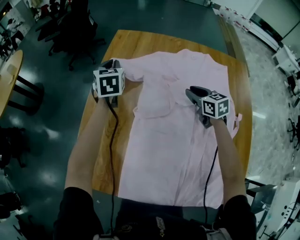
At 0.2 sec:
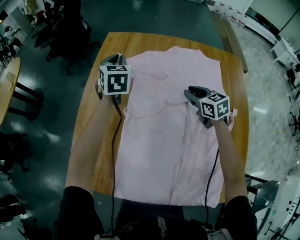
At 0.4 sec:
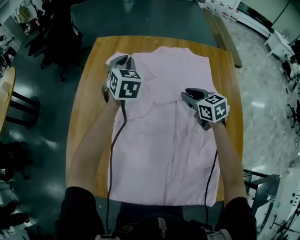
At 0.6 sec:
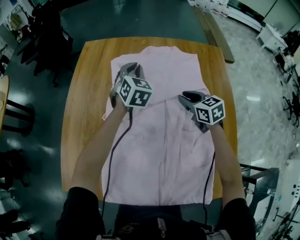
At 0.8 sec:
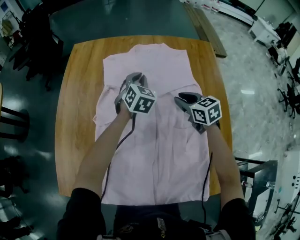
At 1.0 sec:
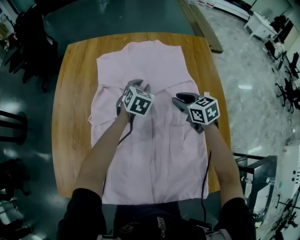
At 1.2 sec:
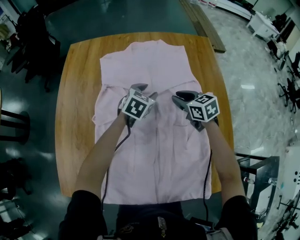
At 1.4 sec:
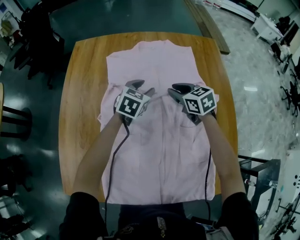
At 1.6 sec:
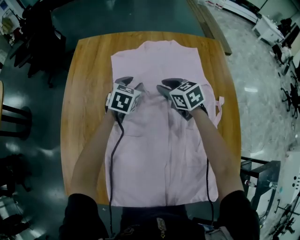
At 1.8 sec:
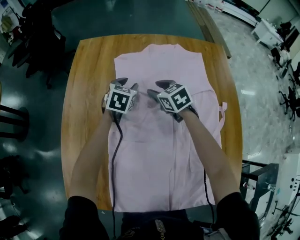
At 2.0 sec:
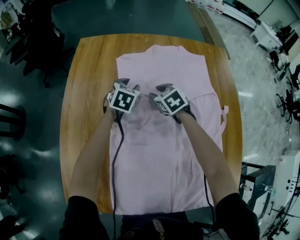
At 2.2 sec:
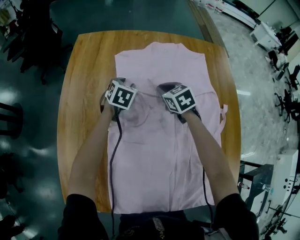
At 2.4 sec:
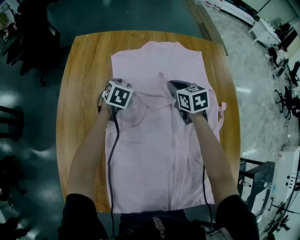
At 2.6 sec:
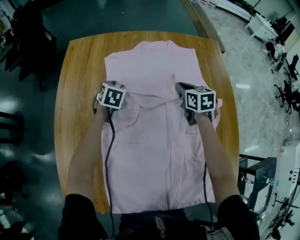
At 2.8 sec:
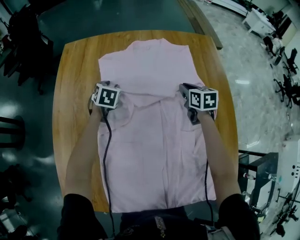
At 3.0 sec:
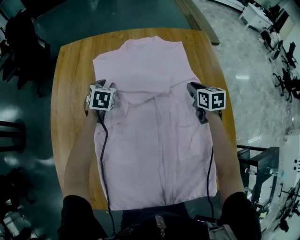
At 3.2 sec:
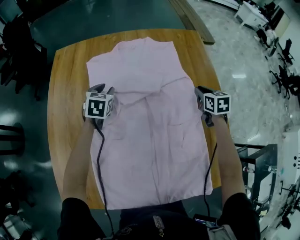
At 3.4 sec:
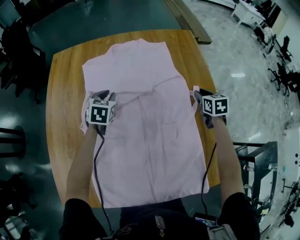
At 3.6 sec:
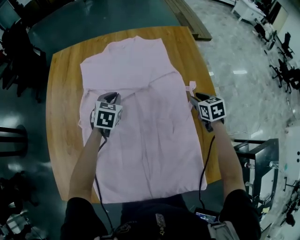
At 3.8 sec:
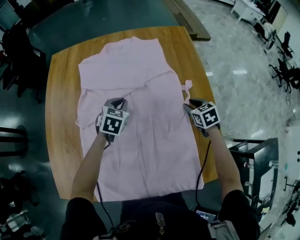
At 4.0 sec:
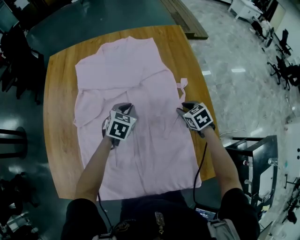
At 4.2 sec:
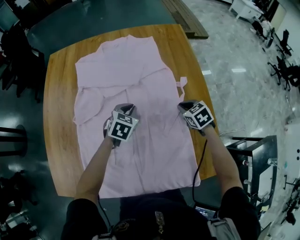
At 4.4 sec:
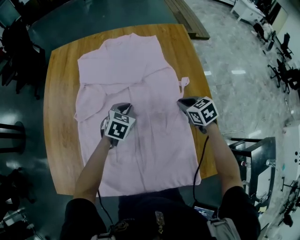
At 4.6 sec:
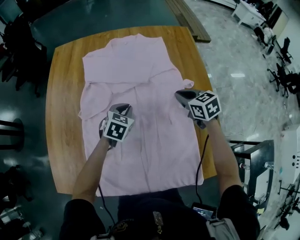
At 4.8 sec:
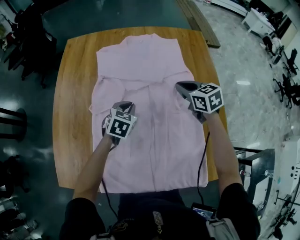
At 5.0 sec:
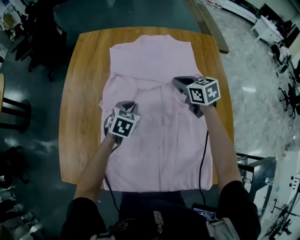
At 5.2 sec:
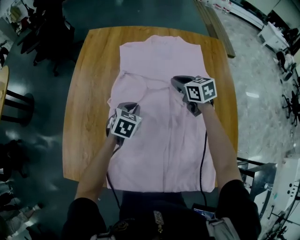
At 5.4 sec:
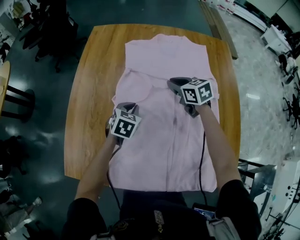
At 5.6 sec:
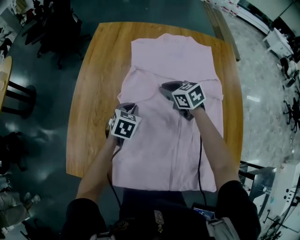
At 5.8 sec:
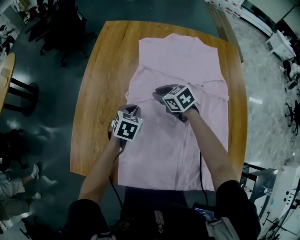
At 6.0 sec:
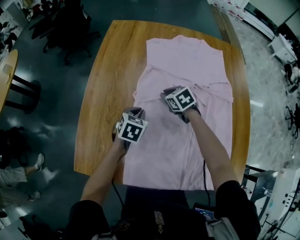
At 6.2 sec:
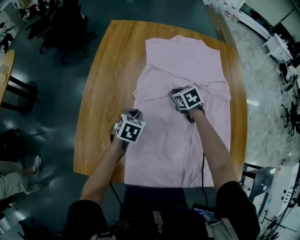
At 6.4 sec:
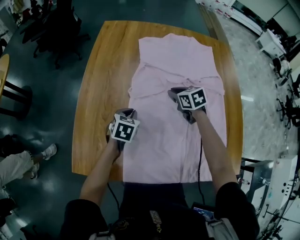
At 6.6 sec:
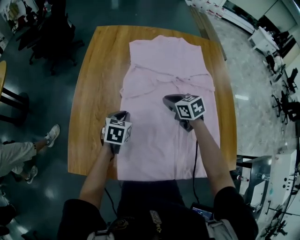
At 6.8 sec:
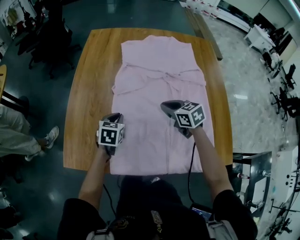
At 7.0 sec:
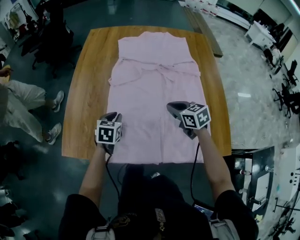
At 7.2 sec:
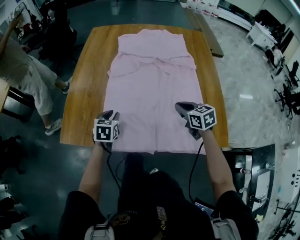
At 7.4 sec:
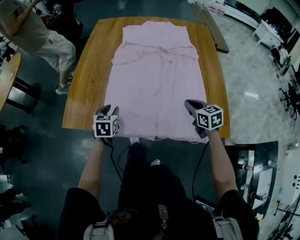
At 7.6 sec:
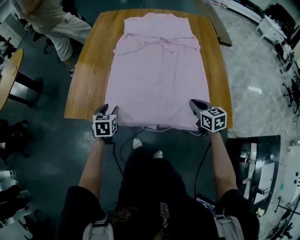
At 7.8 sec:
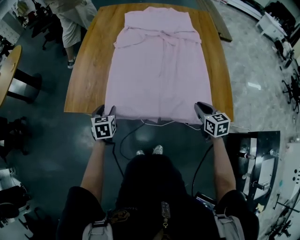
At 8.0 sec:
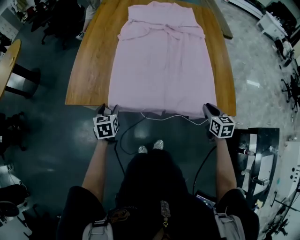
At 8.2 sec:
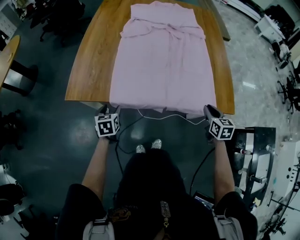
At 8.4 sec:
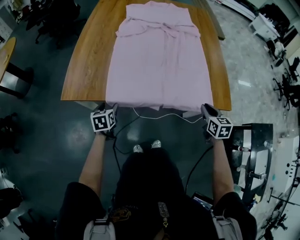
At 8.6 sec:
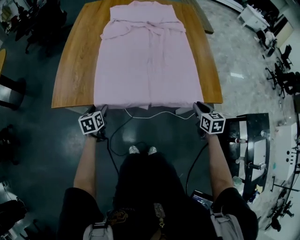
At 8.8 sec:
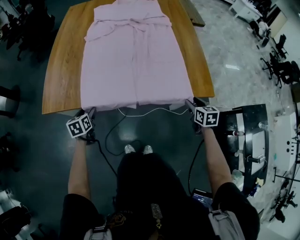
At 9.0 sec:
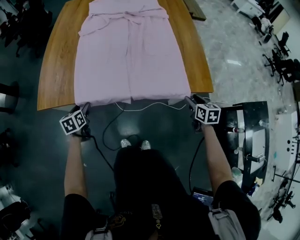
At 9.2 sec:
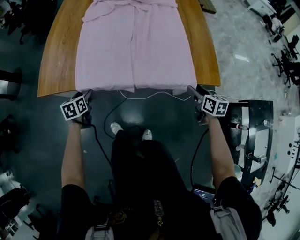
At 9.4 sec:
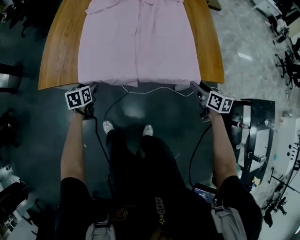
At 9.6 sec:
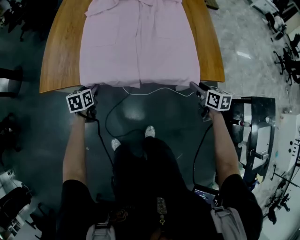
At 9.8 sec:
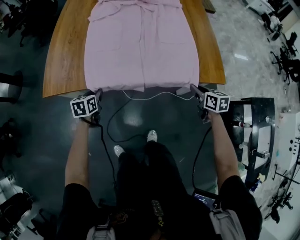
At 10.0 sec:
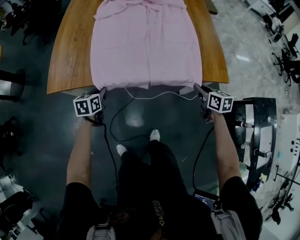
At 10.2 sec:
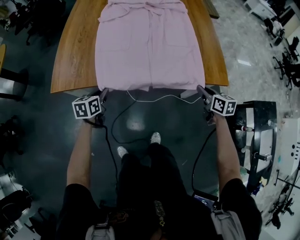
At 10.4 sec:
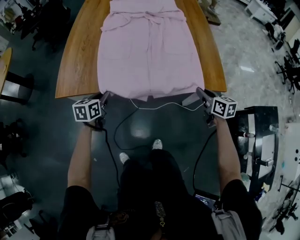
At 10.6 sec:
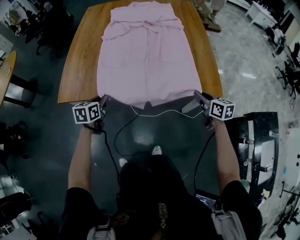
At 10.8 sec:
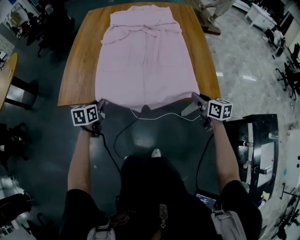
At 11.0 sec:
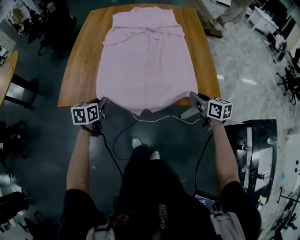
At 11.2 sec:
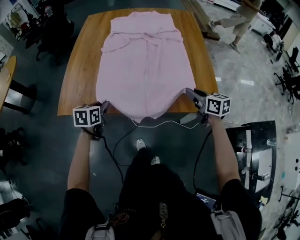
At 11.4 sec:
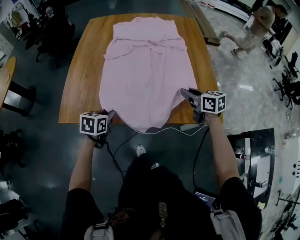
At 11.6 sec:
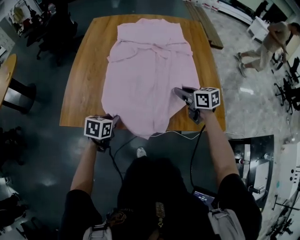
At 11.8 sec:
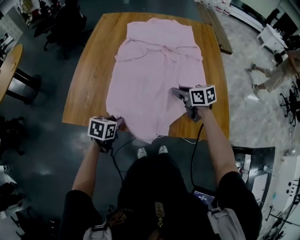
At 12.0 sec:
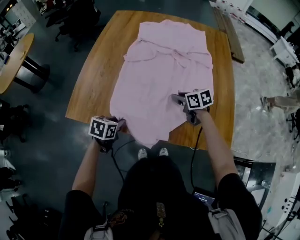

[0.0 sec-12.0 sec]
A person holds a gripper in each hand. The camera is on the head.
0.0 sec to 1.6 sec: The left gripper moves approximately 30 cm, turns by approximately 40 degrees, and opens.
1.6 sec to 3.0 sec: The left gripper shifts by approximately 5 cm, while the right gripper moves to the right, about 20 cm, and rotates about 30 degrees.
3.0 sec to 4.4 sec: The left gripper goes approximately 25 cm to the right and backward, and closes its fingers; the right gripper is displaced backward by some 15 cm, and changes its angle by approximately 20 degrees.
4.4 sec to 6.0 sec: Both grippers travel together to the left, roughly 30 cm.
6.0 sec to 7.6 sec: The right gripper heads backward and to the right, covering about 50 cm, and changes its angle by some 30 degrees, while the left gripper moves backward, about 30 cm, and opens up.
7.6 sec to 9.0 sec: The left gripper moves downward and backward, about 10 cm, while the right gripper moves backward, to the right and downward, roughly 20 cm, swivels approximately 20 degrees, and opens up.
9.0 sec to 10.4 sec: The left gripper is displaced upward and to the right by some 10 cm, and closes. Meanwhile the right gripper heads upward and to the left, covering about 10 cm, and closes its fingers.
10.4 sec to 12.0 sec: The left gripper is displaced forward by roughly 5 cm. Meanwhile the right gripper is displaced forward and to the left by some 30 cm, and swivels approximately 30 degrees.

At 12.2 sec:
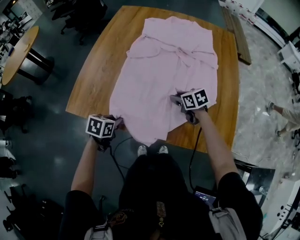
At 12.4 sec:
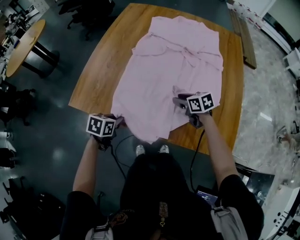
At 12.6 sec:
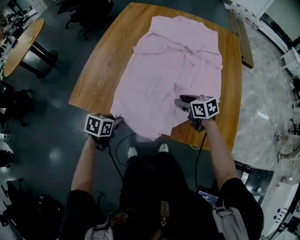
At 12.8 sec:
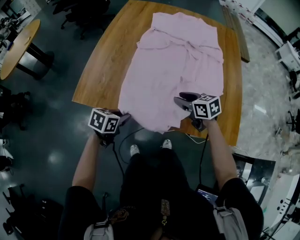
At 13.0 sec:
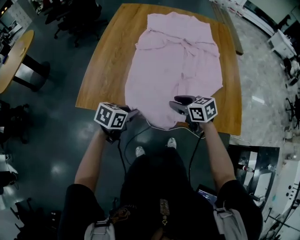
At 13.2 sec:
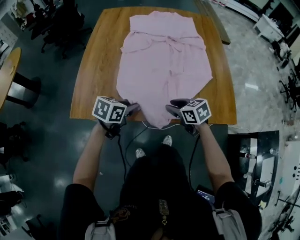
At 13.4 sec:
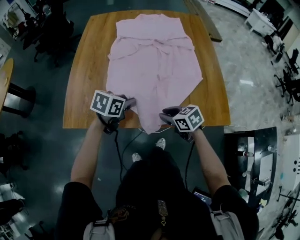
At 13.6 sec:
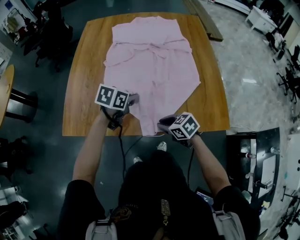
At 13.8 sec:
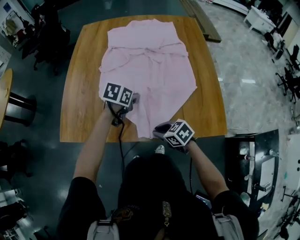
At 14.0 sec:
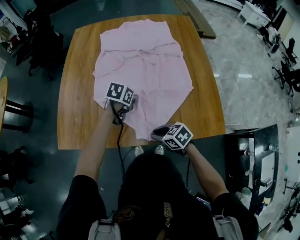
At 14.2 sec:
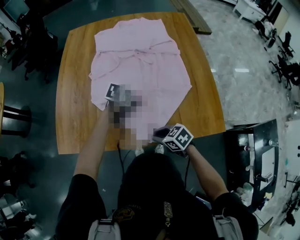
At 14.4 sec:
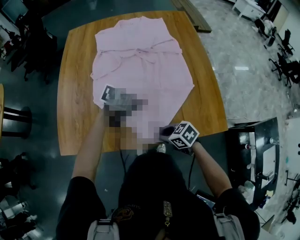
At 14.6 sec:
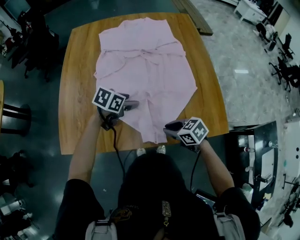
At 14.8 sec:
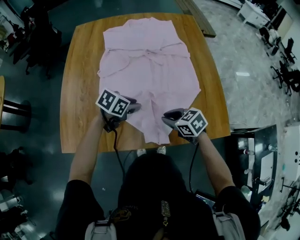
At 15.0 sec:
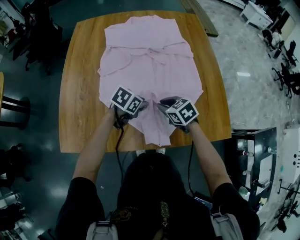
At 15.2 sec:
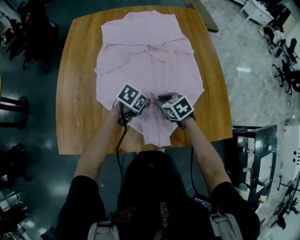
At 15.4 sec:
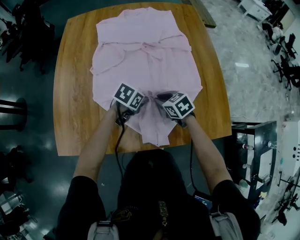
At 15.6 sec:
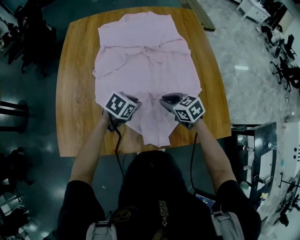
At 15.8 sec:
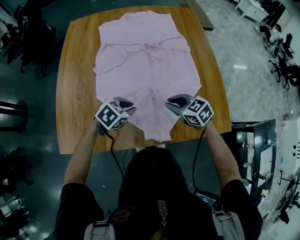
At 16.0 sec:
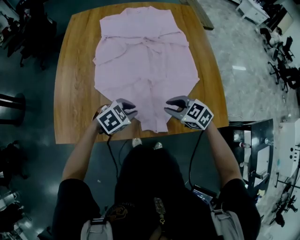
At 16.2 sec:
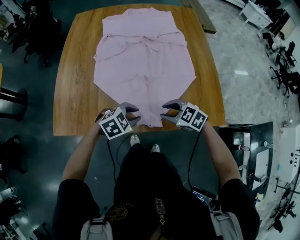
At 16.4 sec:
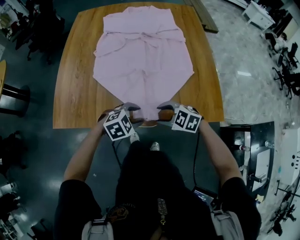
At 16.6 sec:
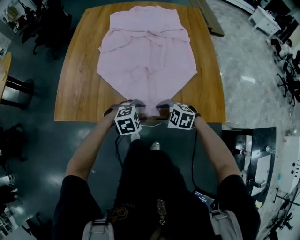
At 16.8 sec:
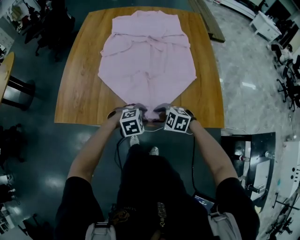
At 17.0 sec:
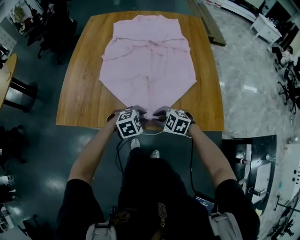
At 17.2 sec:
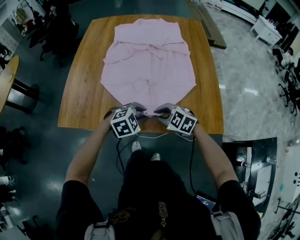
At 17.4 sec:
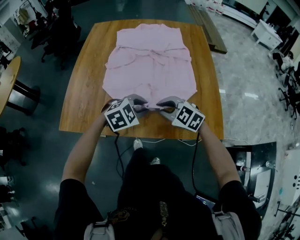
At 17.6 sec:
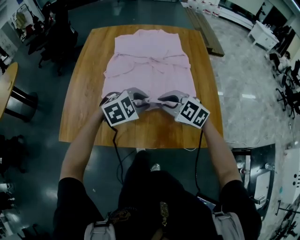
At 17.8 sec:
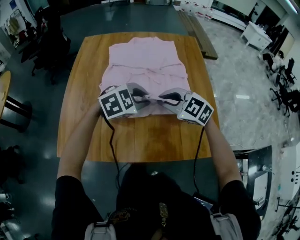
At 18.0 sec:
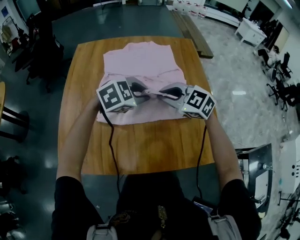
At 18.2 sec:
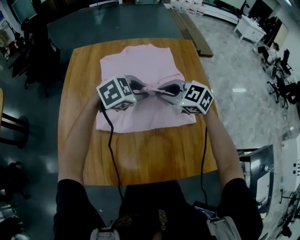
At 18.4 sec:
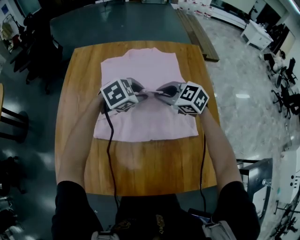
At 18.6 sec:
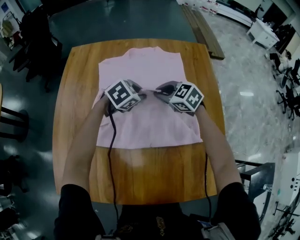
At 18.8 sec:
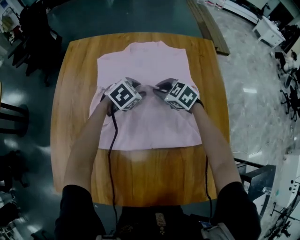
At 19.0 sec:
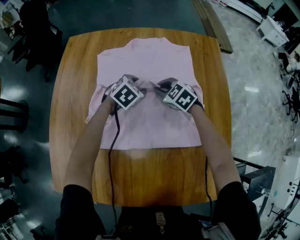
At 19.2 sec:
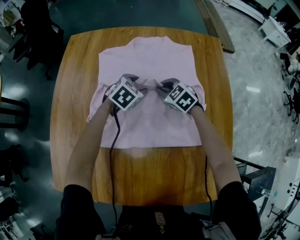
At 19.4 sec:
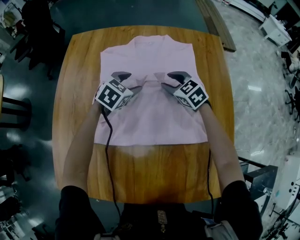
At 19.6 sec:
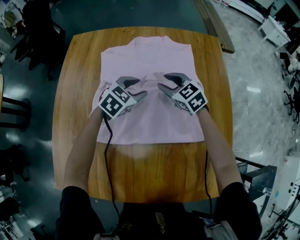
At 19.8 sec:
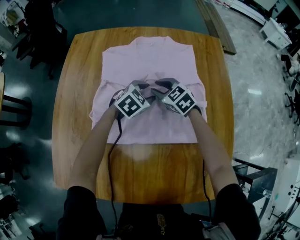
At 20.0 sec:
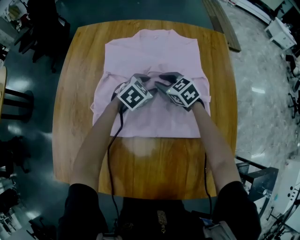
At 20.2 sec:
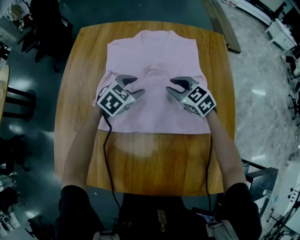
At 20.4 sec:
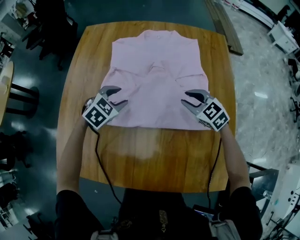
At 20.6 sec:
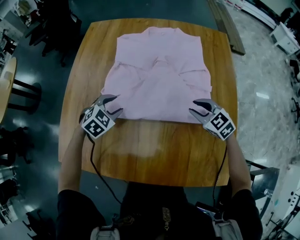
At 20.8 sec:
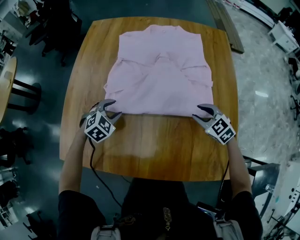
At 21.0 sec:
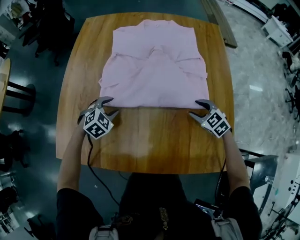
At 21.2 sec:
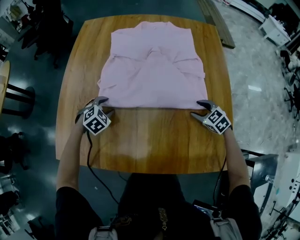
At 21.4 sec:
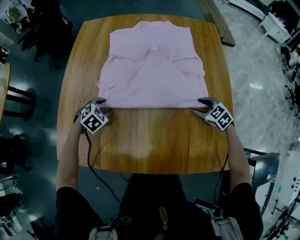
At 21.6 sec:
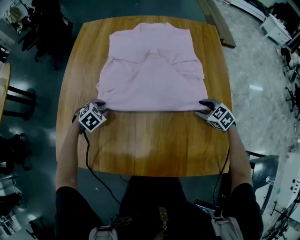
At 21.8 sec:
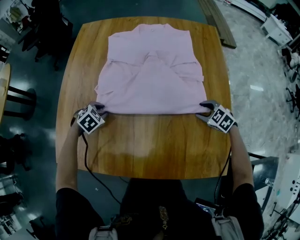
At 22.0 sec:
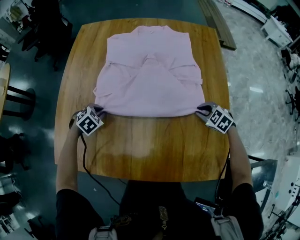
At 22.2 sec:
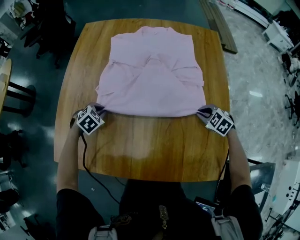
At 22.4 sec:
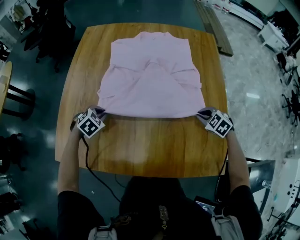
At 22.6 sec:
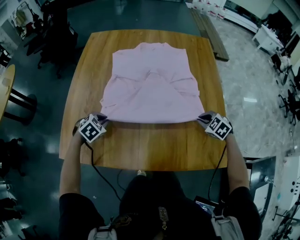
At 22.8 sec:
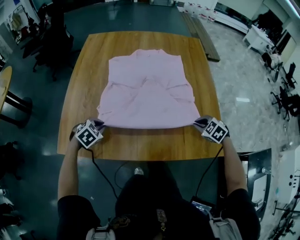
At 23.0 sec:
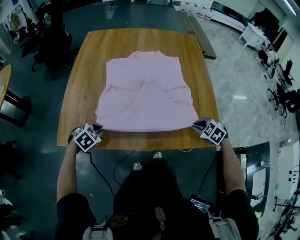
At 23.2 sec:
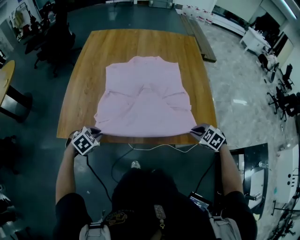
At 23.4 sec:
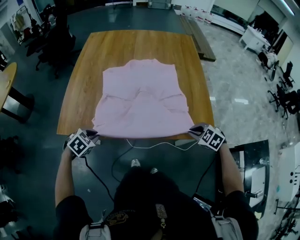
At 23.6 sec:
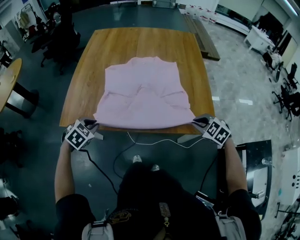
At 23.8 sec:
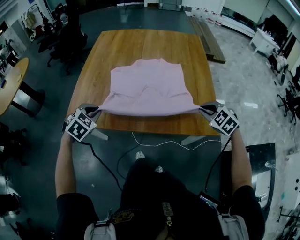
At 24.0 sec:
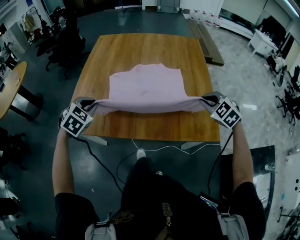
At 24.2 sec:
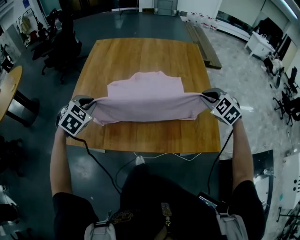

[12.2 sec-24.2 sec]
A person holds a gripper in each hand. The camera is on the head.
12.2 sec to 13.8 sec: The left gripper shifts by approximately 20 cm, and changes its angle by some 20 degrees. Meanwhile the right gripper changes place by approximately 20 cm.
13.8 sec to 15.2 sec: The right gripper moves approximately 20 cm. Meanwhile the left gripper swings up and down, approximately 5 cm each way, with 2 reversals, and opens, then closes once more.
15.2 sec to 16.6 sec: The right gripper moves some 20 cm, rotates around the line of its fingers by about 40 degrees, counterclockwise from behind, and opens; the left gripper shifts by approximately 20 cm, rotates around the line of its fingers by roughly 40 degrees, clockwise from behind, and opens its fingers.
16.6 sec to 18.2 sec: The right gripper changes place by approximately 40 cm, turns by approximately 30 degrees, and closes its fingers; the left gripper changes place by roughly 40 cm, and closes its fingers.
18.2 sec to 19.8 sec: The left gripper goes up and down, approximately 20 cm each way, reversing 2 times, turns by roughly 20 degrees, and opens its fingers; the right gripper moves up and down over some 20 cm, changing direction 2 times, and opens.
19.8 sec to 21.2 sec: The left gripper heads to the left and backward, covering roughly 30 cm, and turns by approximately 20 degrees. Meanwhile the right gripper moves backward and to the right, roughly 30 cm, and opens.
21.2 sec to 22.6 sec: The two grippers go about 5 cm backward. The right gripper closes its fingers, while the left gripper closes up.
22.6 sec to 24.2 sec: The grippers both shift upward by roughly 20 cm. The right gripper reaches some 25 cm backward, then returns, and changes its angle by about 20 degrees. The left gripper goes backward and returns, roughly 25 cm each way, and changes its angle by some 20 degrees.
